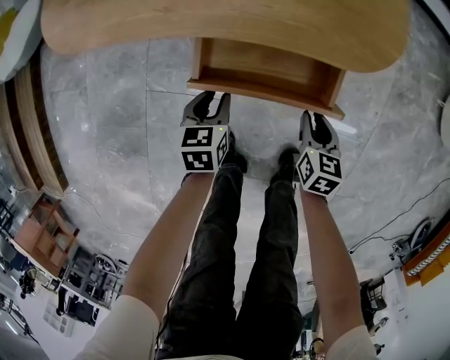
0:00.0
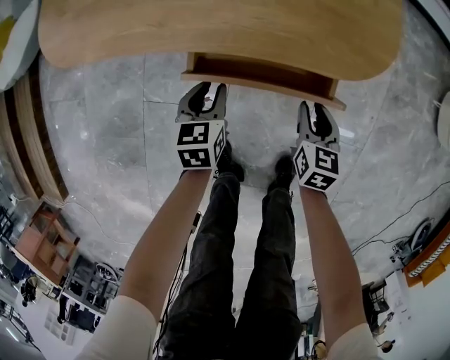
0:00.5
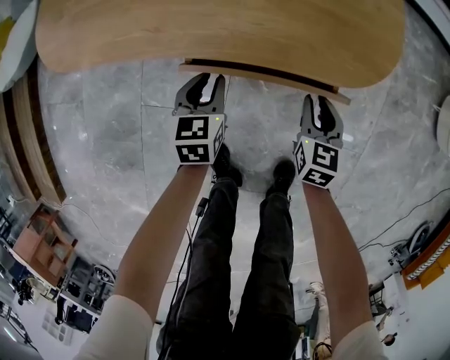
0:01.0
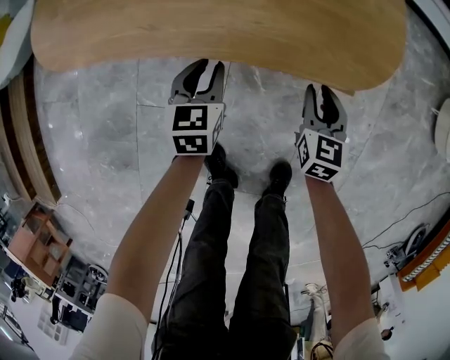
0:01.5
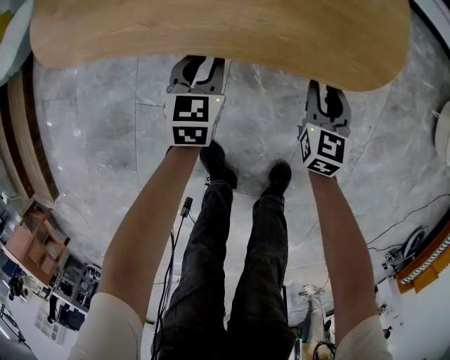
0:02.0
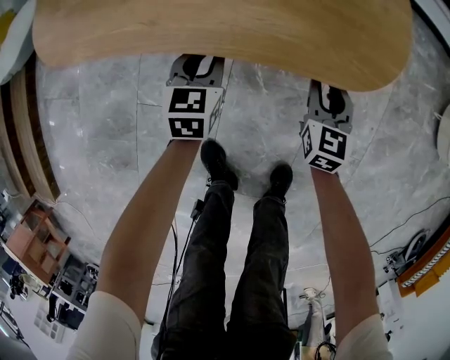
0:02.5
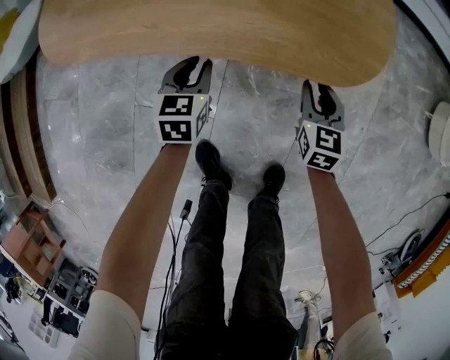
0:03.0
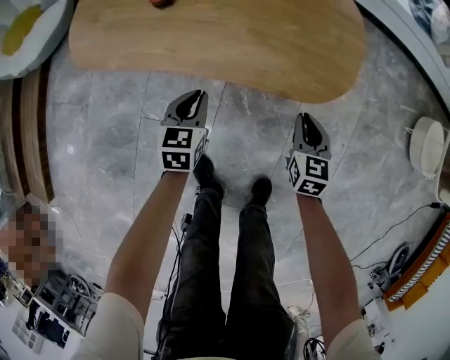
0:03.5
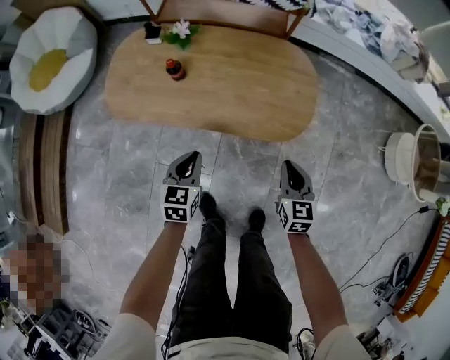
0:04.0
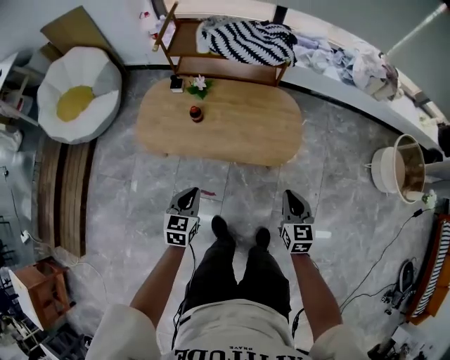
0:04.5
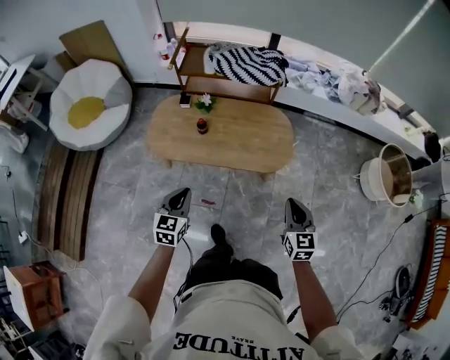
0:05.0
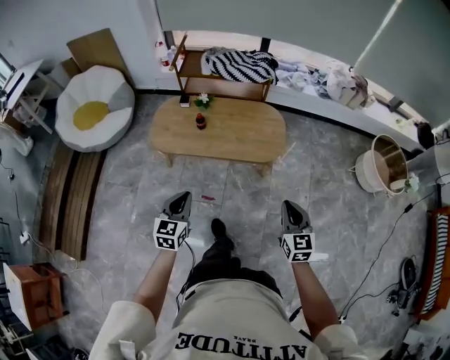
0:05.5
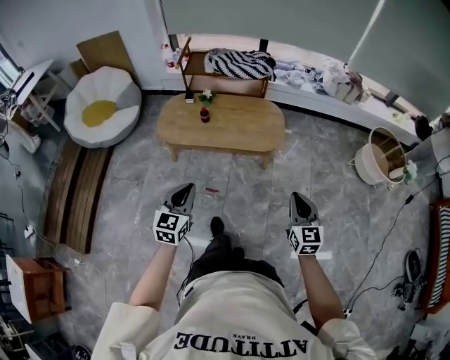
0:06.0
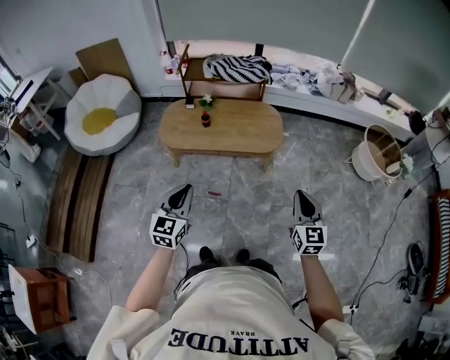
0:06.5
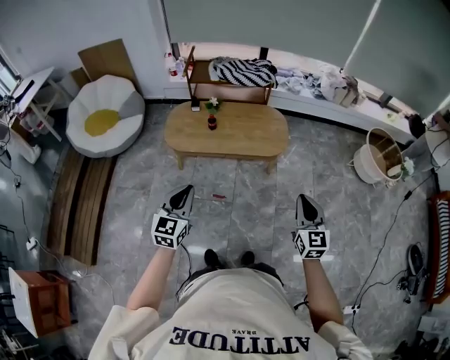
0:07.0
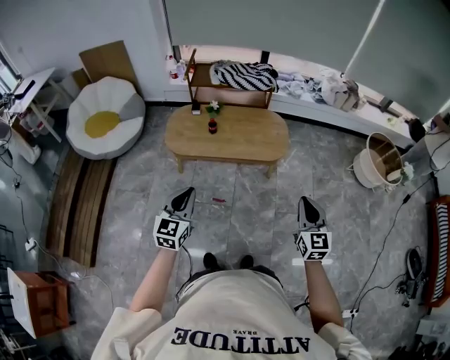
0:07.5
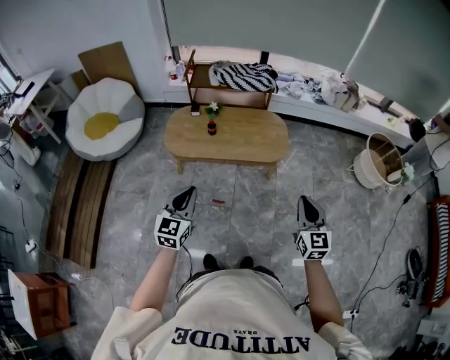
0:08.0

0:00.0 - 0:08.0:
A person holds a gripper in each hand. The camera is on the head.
0:00.0 - 0:02.0: Both grippers move forward, some 15 cm. The right gripper rotates about 20 degrees, while the left gripper turns by roughly 20 degrees.
0:02.0 - 0:04.0: Both grippers travel together upward, roughly 30 cm. The right gripper closes up.
0:04.0 - 0:06.0: The left gripper goes approximately 60 cm upward and backward, and rotates roughly 20 degrees; the right gripper goes about 60 cm backward and upward.
0:06.0 - 0:08.0: The left gripper heads to the left, covering approximately 10 cm. Meanwhile the right gripper travels to the left and upward by about 10 cm.

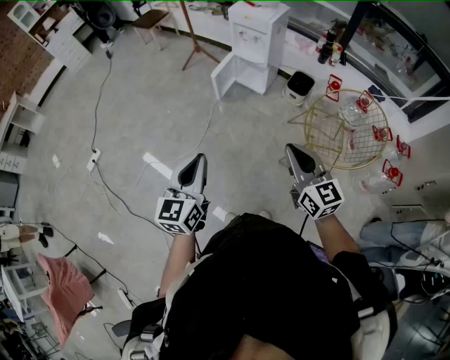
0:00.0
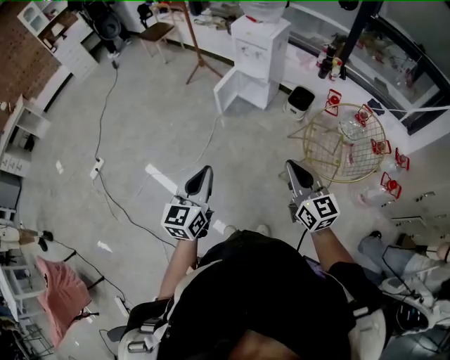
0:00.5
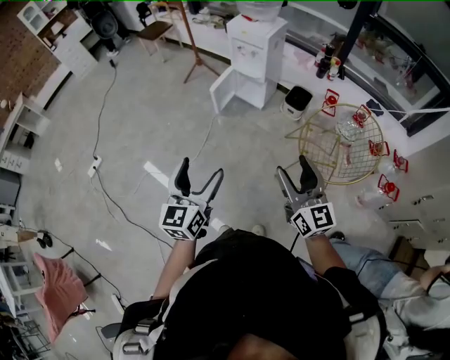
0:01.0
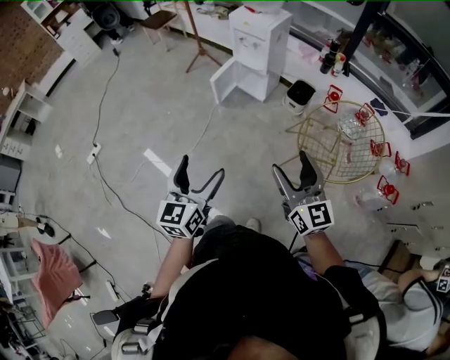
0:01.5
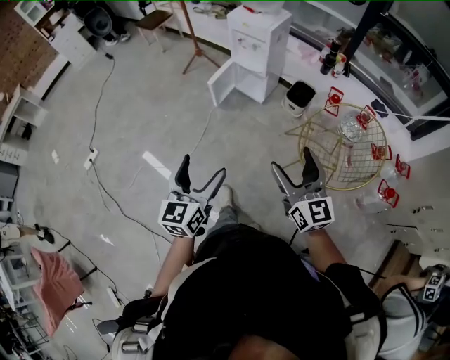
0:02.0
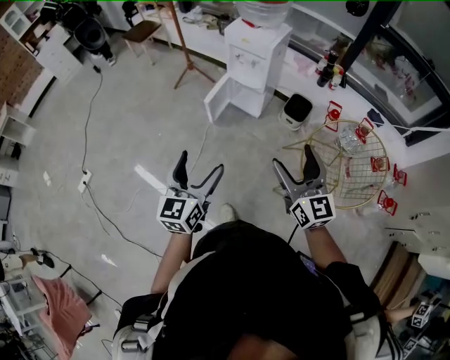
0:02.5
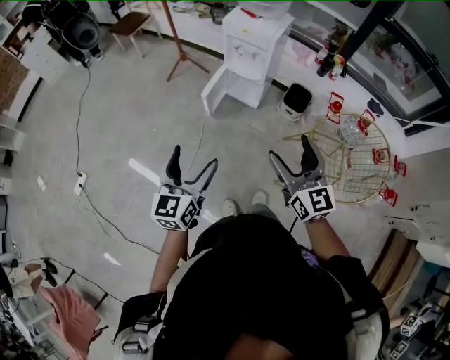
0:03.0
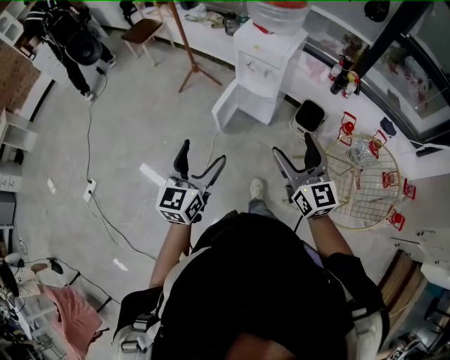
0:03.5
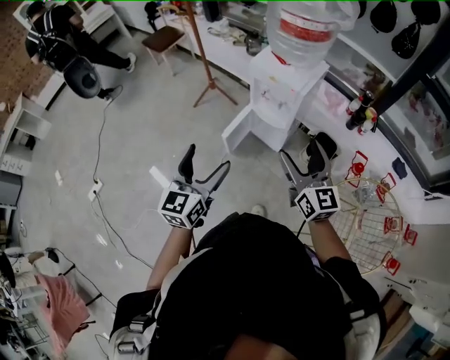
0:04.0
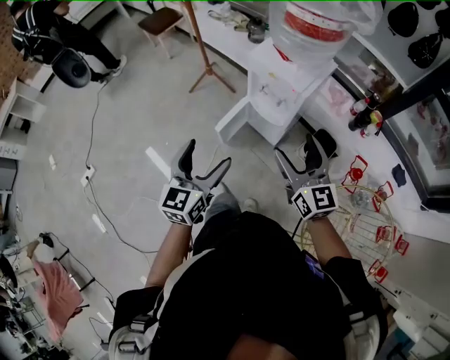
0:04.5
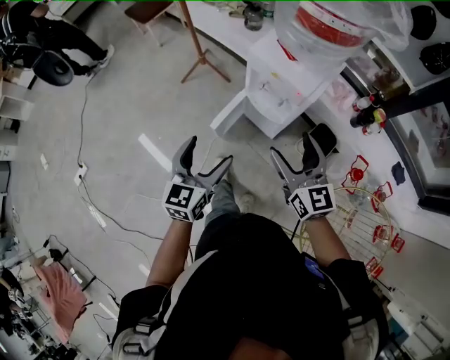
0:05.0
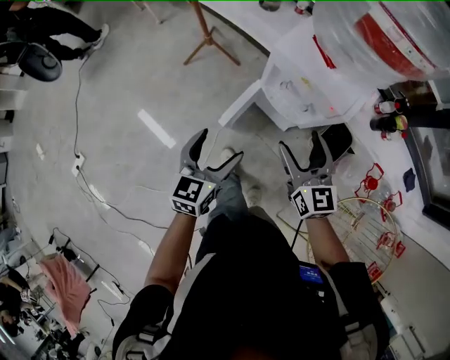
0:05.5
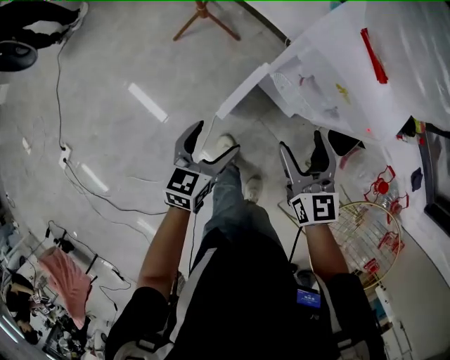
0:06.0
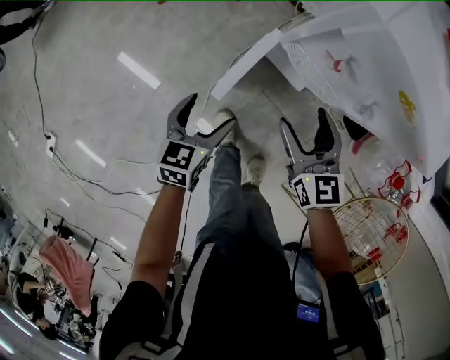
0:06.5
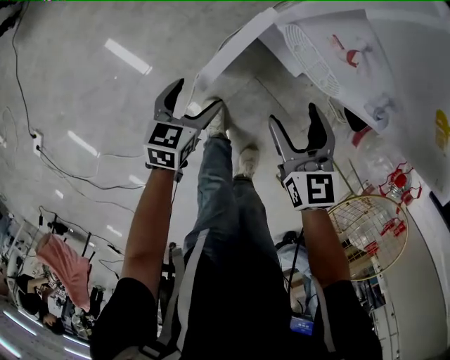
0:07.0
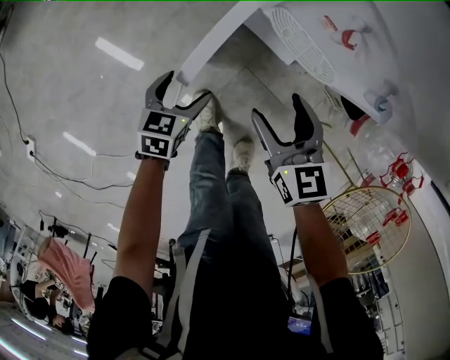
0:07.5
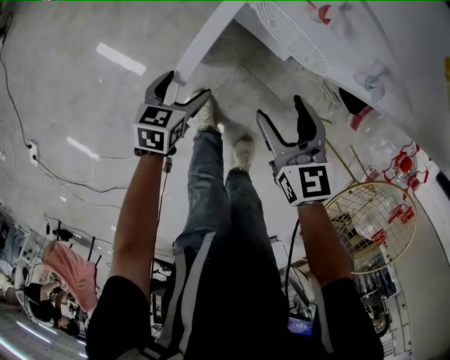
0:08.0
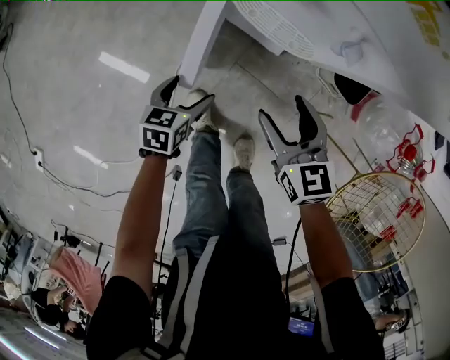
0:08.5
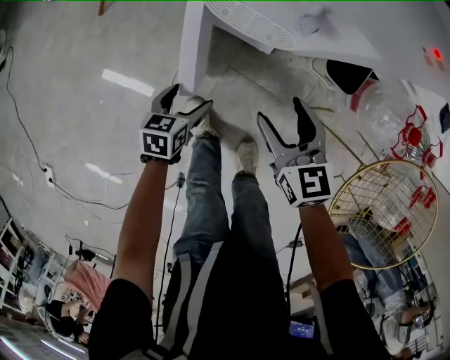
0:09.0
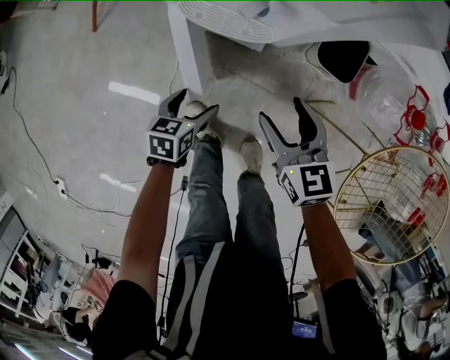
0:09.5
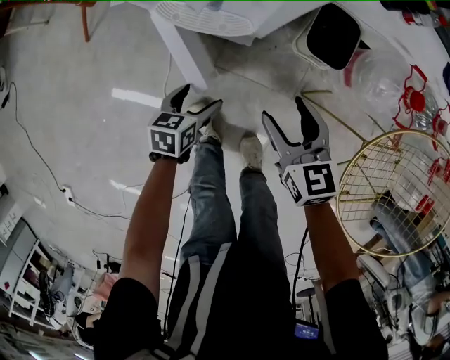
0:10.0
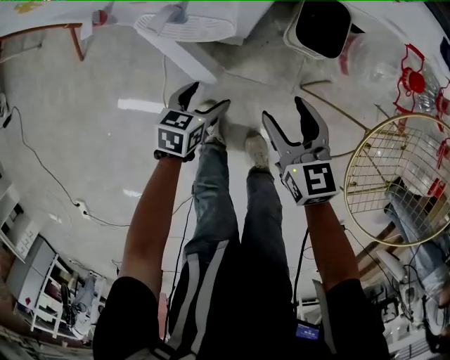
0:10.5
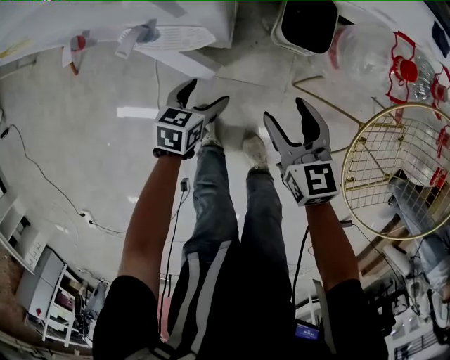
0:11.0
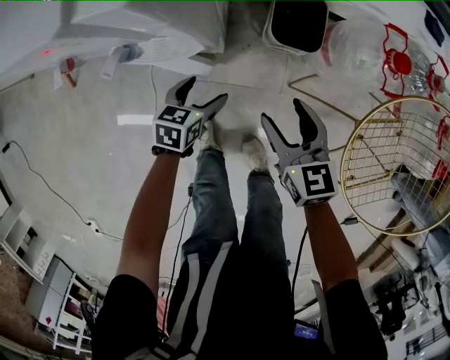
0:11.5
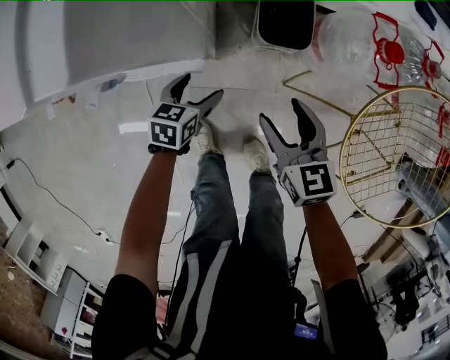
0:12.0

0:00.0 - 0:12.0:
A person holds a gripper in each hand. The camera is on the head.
0:00.0 - 0:02.0: The right gripper moves to the right, roughly 5 cm, and opens its fingers. Meanwhile the left gripper travels to the right and forward by some 10 cm, and opens.
0:02.0 - 0:04.0: The pair of grippers is taken forward, roughly 40 cm.
0:04.0 - 0:06.0: Both grippers move downward and forward, about 40 cm. The left gripper changes its angle by roughly 30 degrees. Meanwhile the right gripper swivels some 20 degrees.
0:06.0 - 0:08.0: The grippers both shift downward by approximately 25 cm. The left gripper changes its angle by approximately 20 degrees.
0:08.0 - 0:10.0: The grippers both shift to the right by approximately 20 cm.
0:10.0 - 0:12.0: The right gripper is displaced to the right by approximately 10 cm. The left gripper is displaced forward and to the right by about 15 cm, and turns by about 20 degrees.

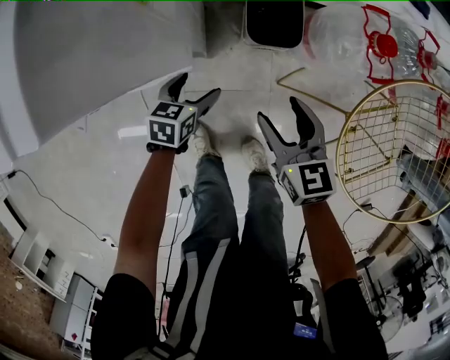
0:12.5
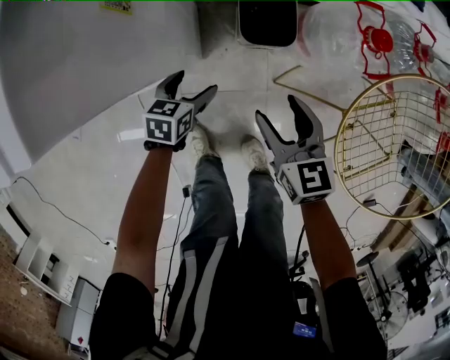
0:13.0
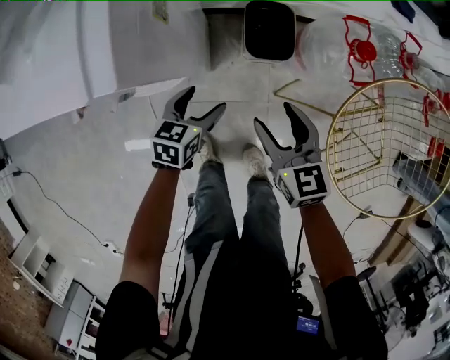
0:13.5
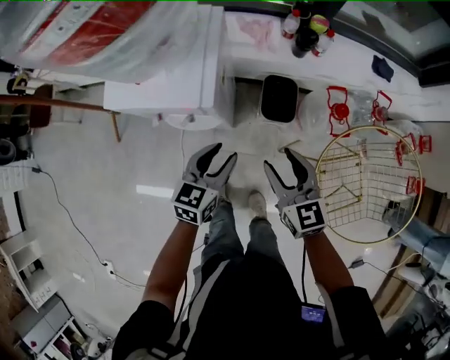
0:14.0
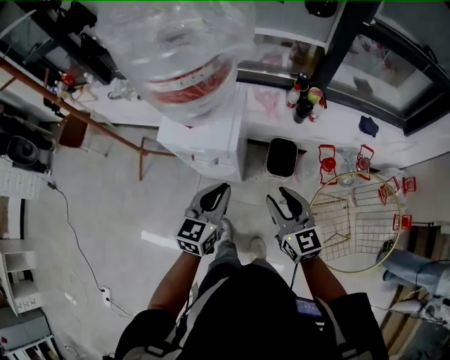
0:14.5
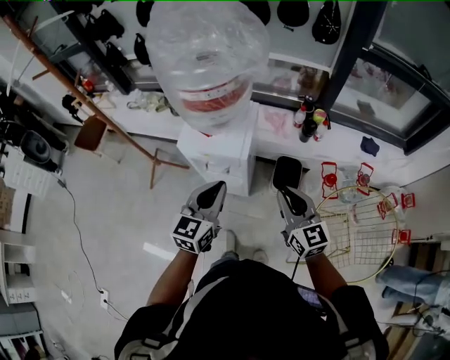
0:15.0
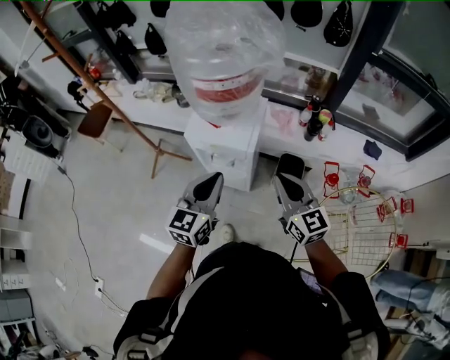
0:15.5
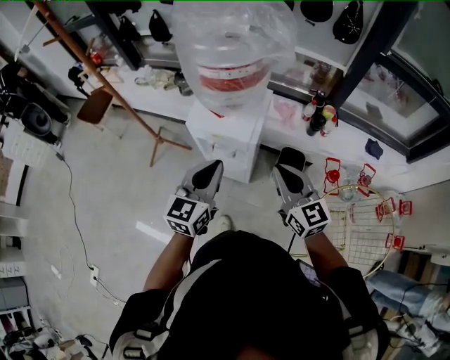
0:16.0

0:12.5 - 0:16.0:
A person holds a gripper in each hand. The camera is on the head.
0:12.5 - 0:14.5: The grippers both shift upward by roughly 50 cm. The right gripper changes its angle by some 30 degrees; the left gripper tips its fingers upward by some 30 degrees, and closes.
0:14.5 - 0:16.0: Both grippers travel together upward and to the left, roughly 15 cm. The right gripper closes up.

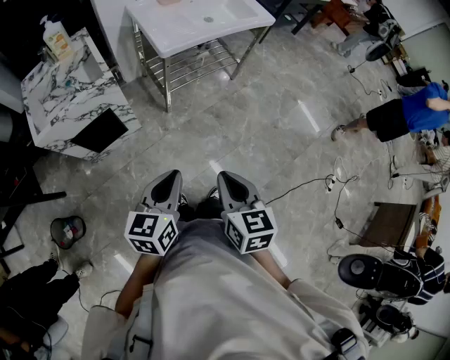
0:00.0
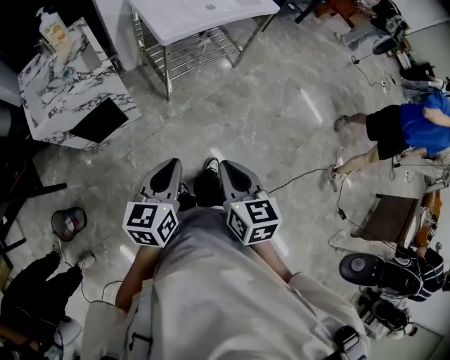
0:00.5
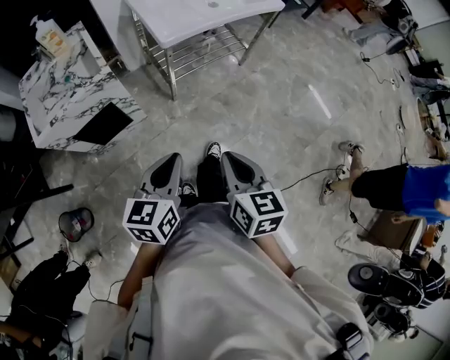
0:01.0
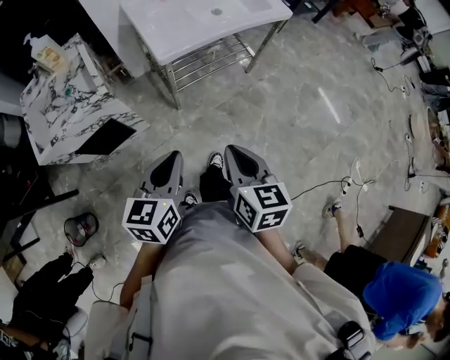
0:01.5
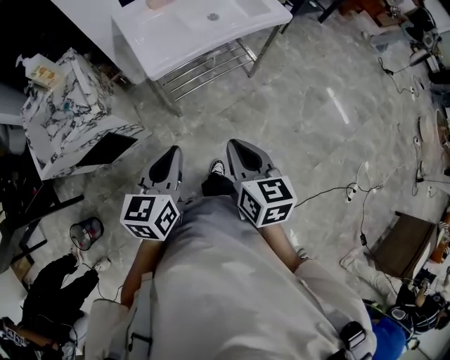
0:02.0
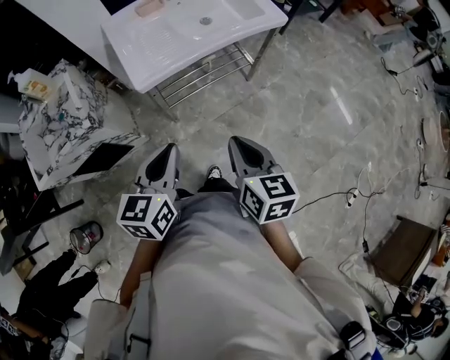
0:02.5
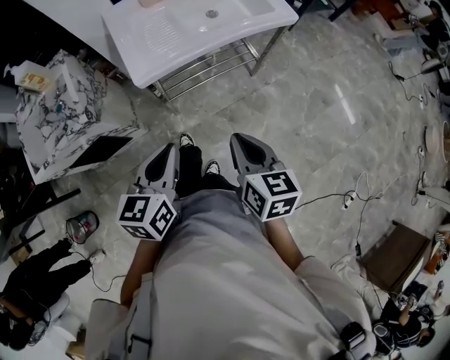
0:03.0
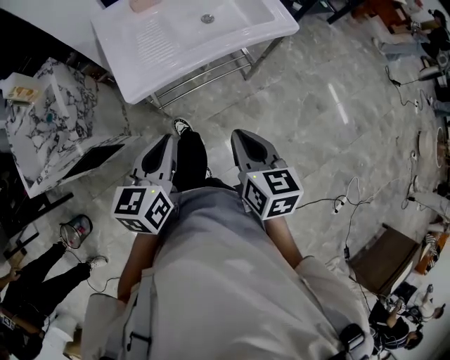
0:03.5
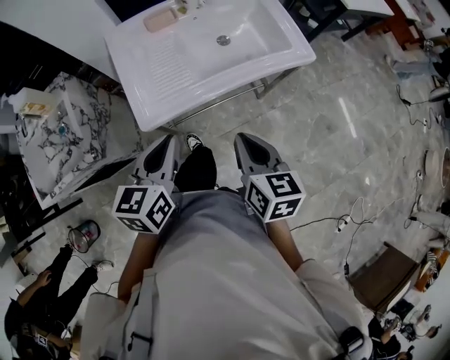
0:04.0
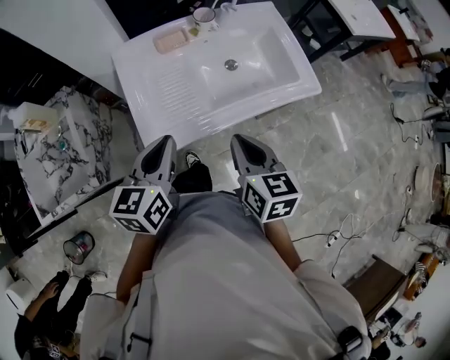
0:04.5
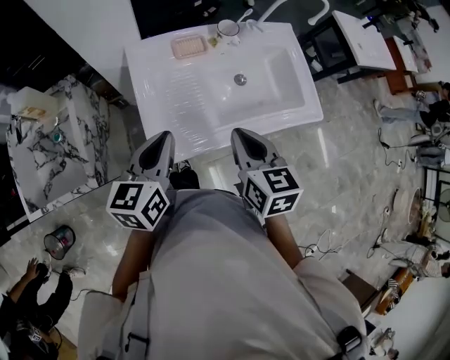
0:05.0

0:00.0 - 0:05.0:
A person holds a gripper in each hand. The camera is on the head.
0:00.0 - 0:02.5: The right gripper is displaced forward and to the right by approximately 35 cm; the left gripper heads forward, covering approximately 30 cm.
0:02.5 - 0:05.0: The grippers both shift forward by roughly 35 cm.
